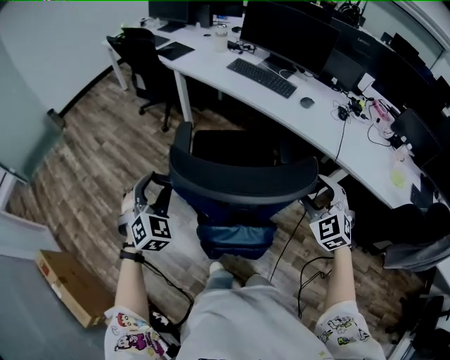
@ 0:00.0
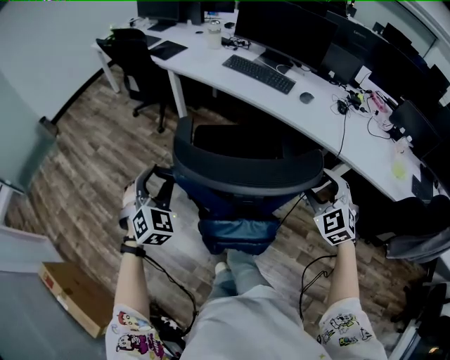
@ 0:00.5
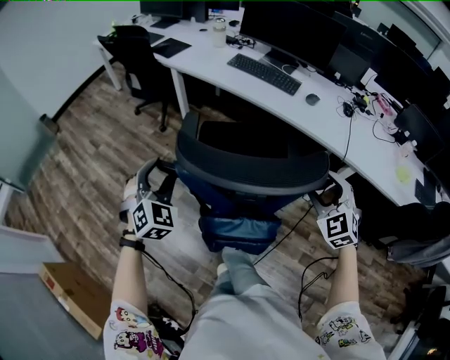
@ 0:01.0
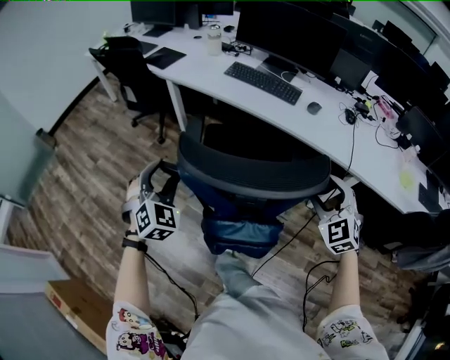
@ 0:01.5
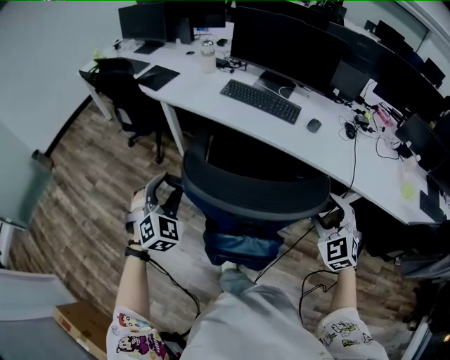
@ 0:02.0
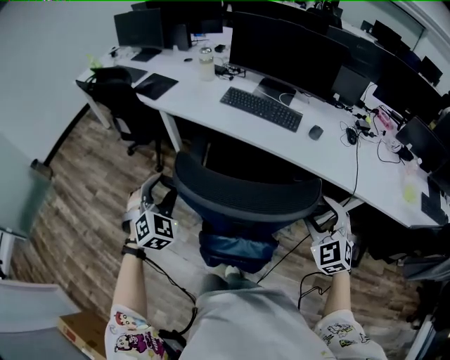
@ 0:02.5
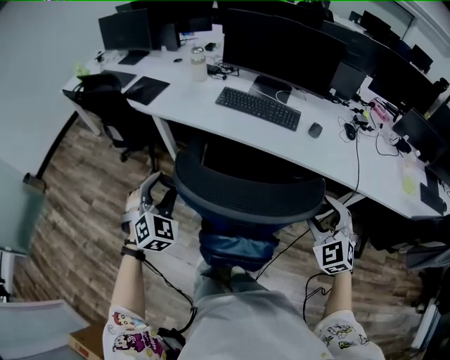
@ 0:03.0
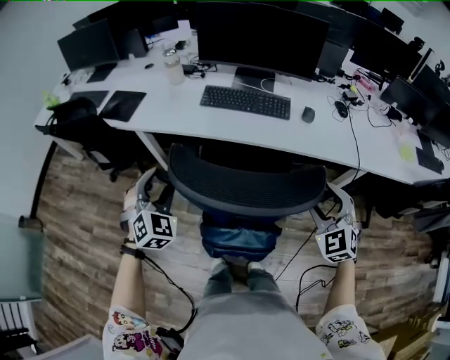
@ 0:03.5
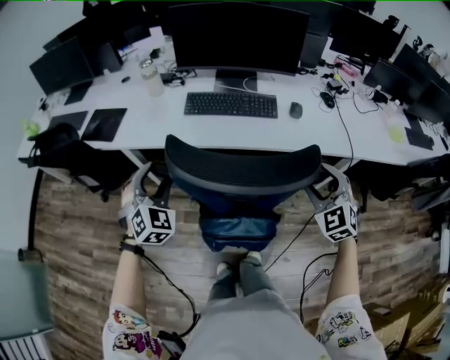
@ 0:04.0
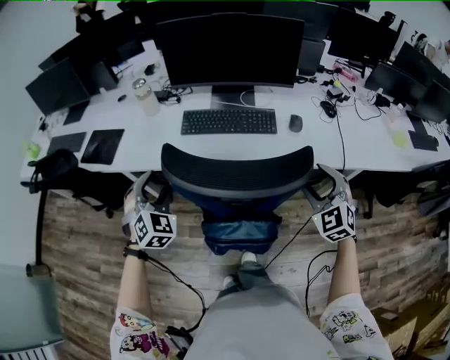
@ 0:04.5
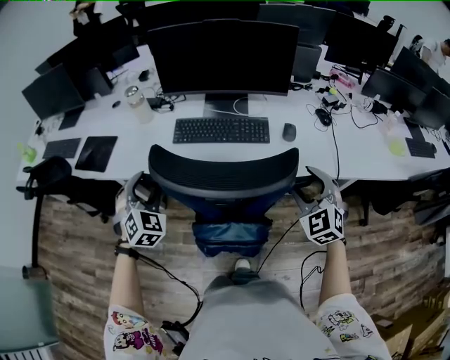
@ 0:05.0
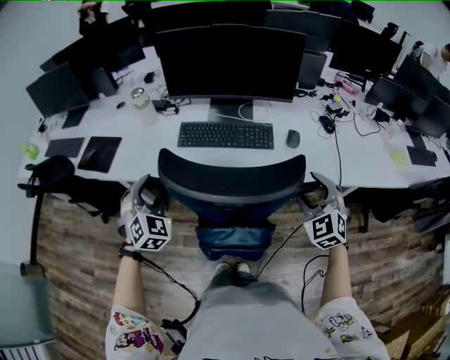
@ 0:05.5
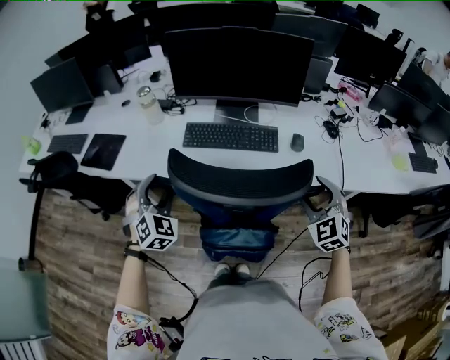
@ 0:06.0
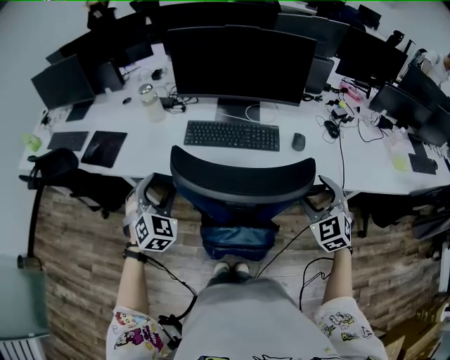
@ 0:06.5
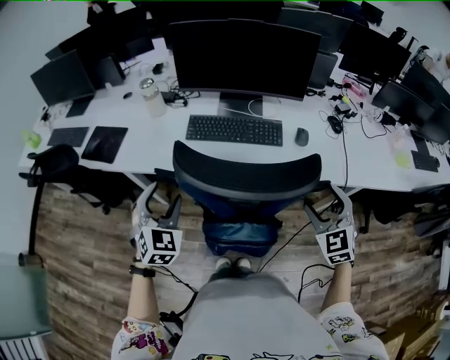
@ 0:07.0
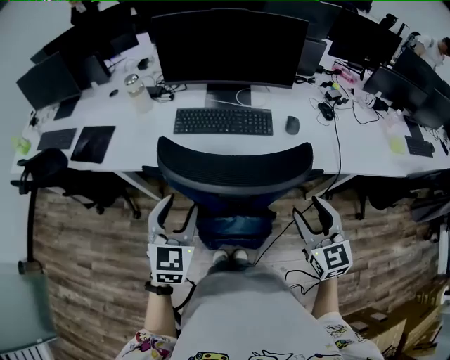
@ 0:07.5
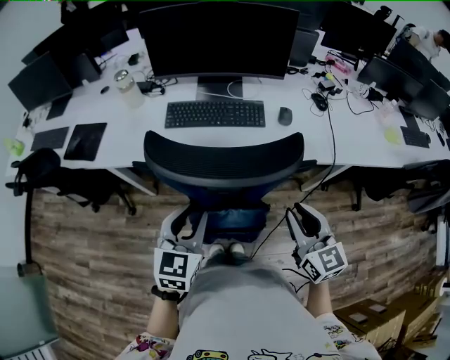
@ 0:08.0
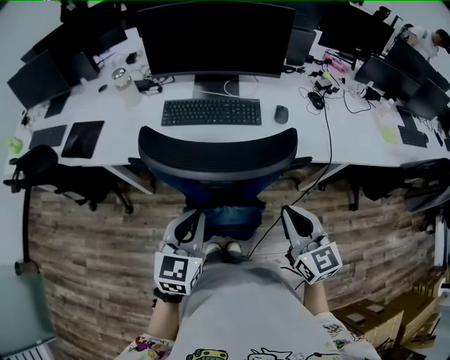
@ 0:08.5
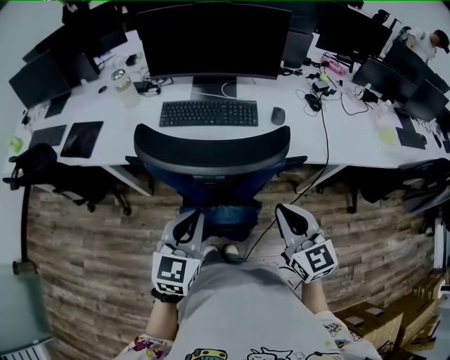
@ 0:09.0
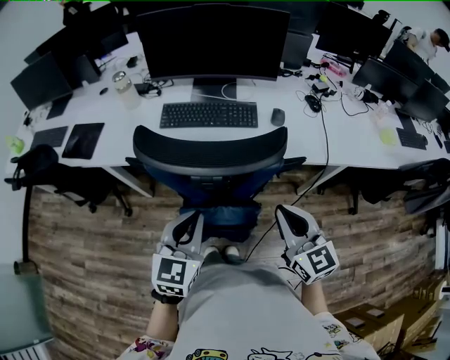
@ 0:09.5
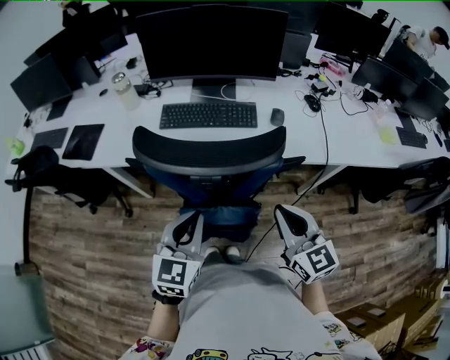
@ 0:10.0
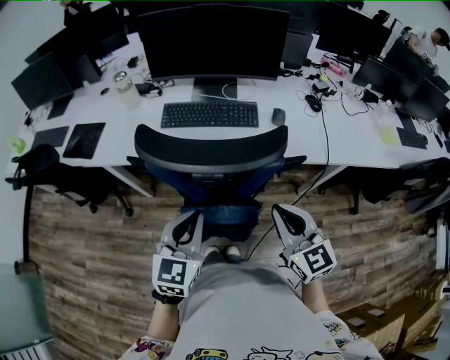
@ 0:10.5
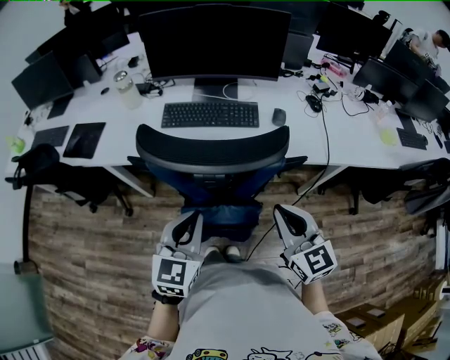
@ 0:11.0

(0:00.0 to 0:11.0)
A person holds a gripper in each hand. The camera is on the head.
0:00.0 - 0:02.0: The left gripper goes about 25 cm forward. The right gripper heads forward, covering approximately 15 cm.
0:02.0 - 0:03.5: The right gripper moves to the left and forward, about 10 cm. Meanwhile the left gripper goes about 20 cm forward.
0:03.5 - 0:05.5: Both grippers travel together forward, about 15 cm.
0:05.5 - 0:07.5: The left gripper moves backward and to the right, roughly 15 cm, and turns by roughly 30 degrees, while the right gripper heads backward, covering roughly 10 cm, and turns by some 40 degrees.
0:07.5 - 0:09.0: The right gripper closes; the left gripper goes some 10 cm to the right and backward, and closes.
0:09.0 - 0:11.0: Neither gripper changes place.

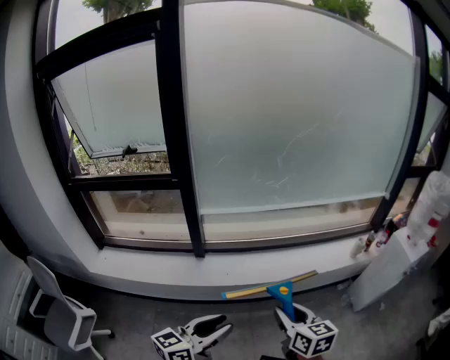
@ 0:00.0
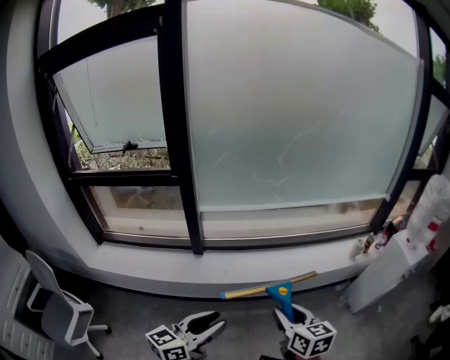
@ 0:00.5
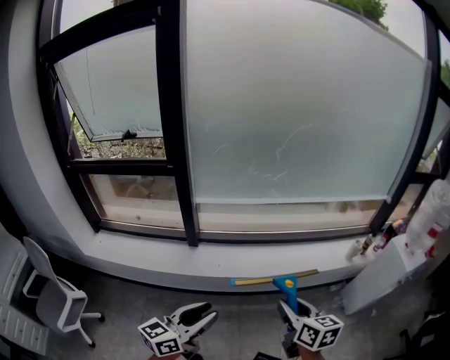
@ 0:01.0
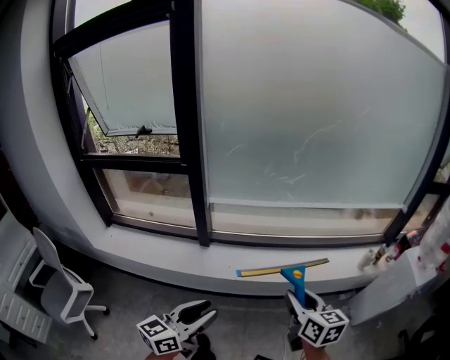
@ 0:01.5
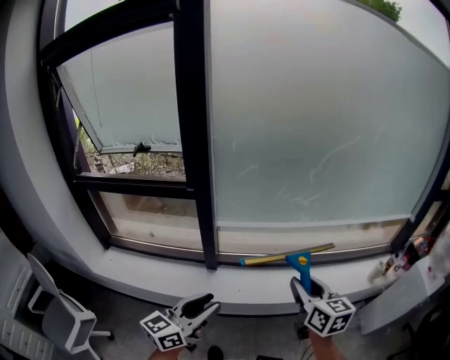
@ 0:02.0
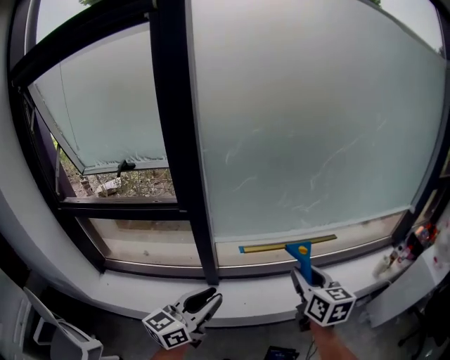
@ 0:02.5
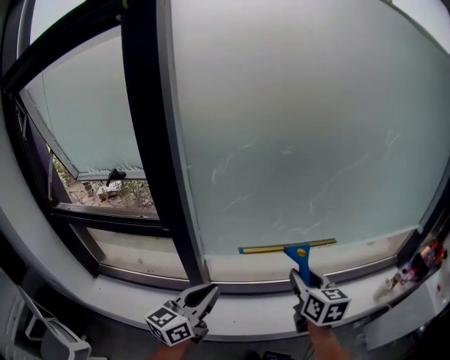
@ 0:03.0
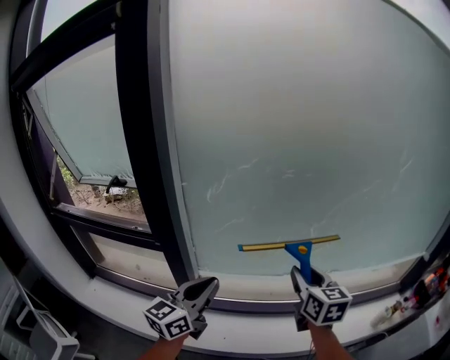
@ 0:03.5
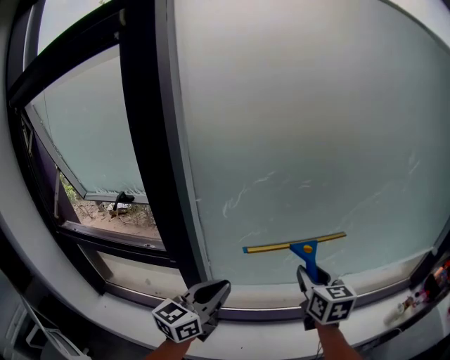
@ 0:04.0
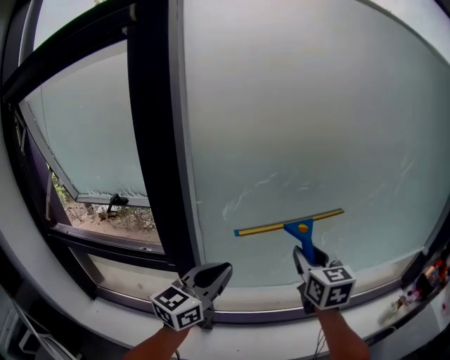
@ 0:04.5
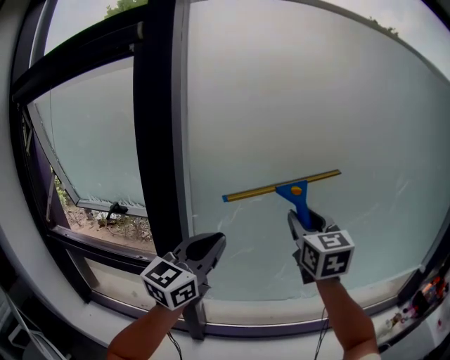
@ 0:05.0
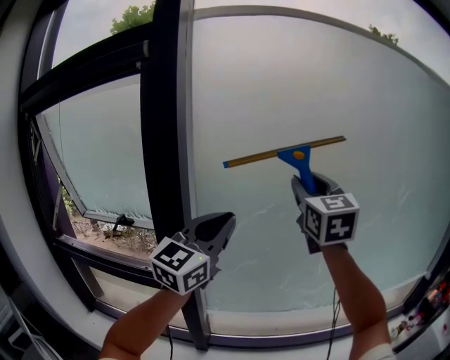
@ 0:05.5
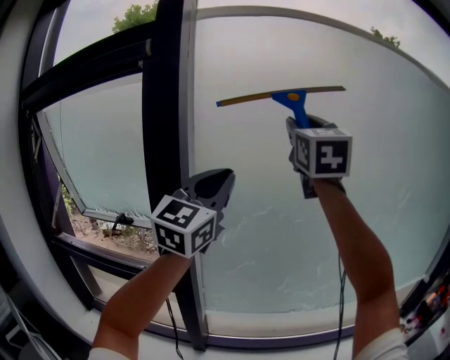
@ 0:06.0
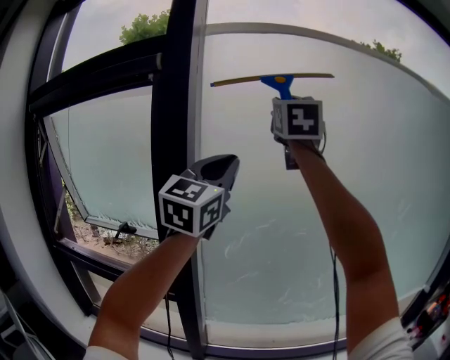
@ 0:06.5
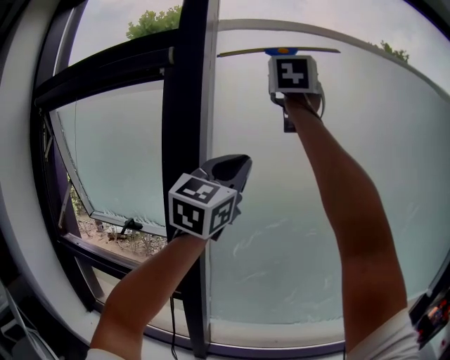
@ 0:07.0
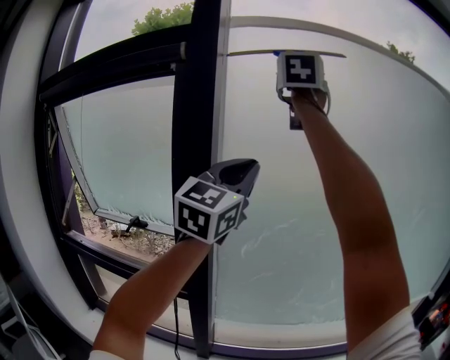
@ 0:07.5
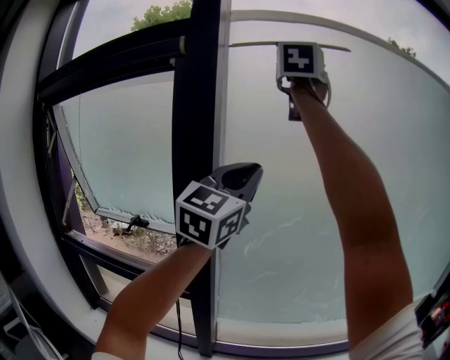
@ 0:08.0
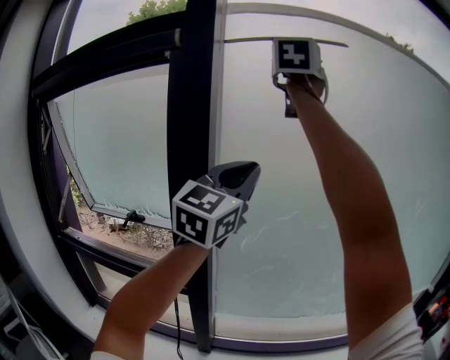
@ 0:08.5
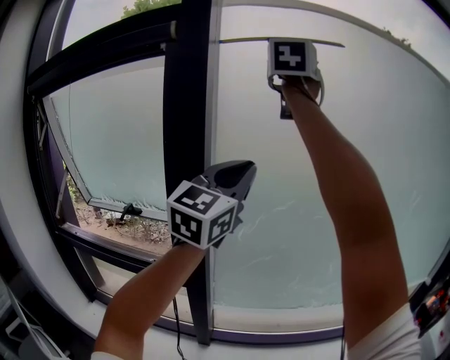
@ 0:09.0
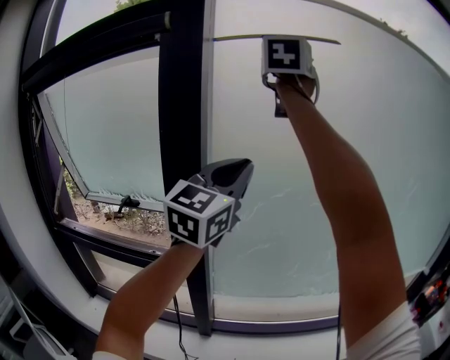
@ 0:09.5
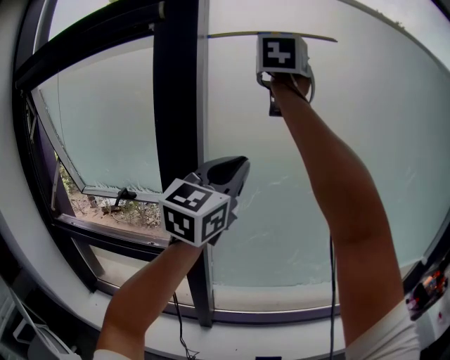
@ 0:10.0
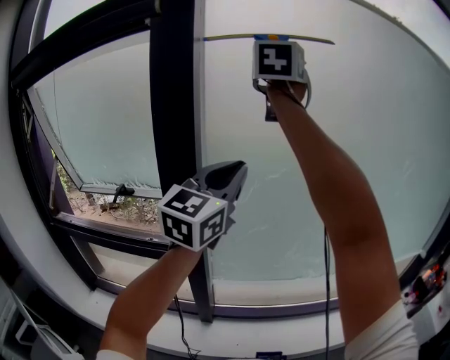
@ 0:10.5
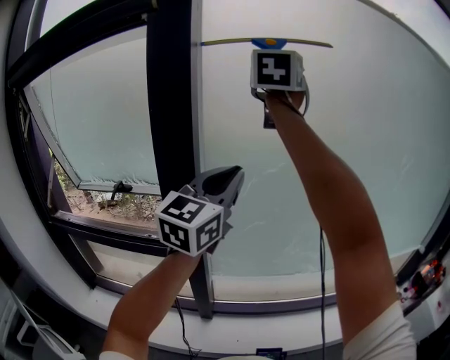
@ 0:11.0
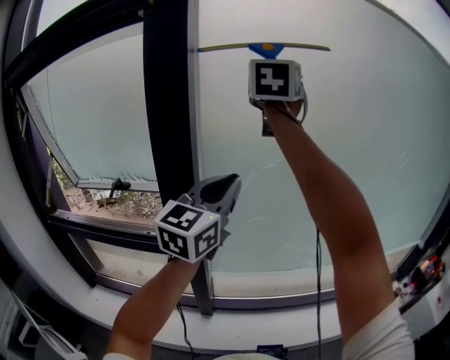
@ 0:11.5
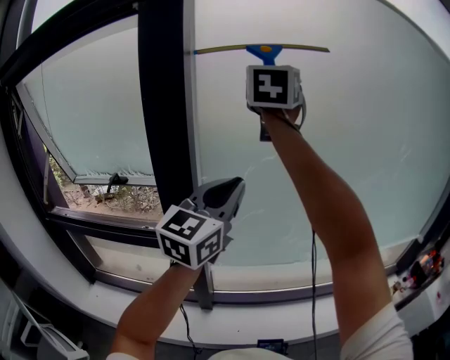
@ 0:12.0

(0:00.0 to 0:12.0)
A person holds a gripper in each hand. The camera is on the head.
0:00.0 - 0:02.0: The left gripper shifts about 20 cm forward and to the left. The right gripper moves forward, approximately 20 cm.
0:02.0 - 0:04.0: Both grippers travel together forward, approximately 35 cm. The left gripper closes its fingers.
0:04.0 - 0:06.0: Both grippers move upward, roughly 40 cm. The right gripper tips its fingers upward by about 30 degrees; the left gripper rotates about 40 degrees.
0:06.0 - 0:08.0: The right gripper heads upward and to the left, covering roughly 20 cm.
0:08.0 - 0:10.0: The two grippers go approximately 10 cm downward.
0:10.0 - 0:12.0: The grippers both shift downward by some 10 cm.

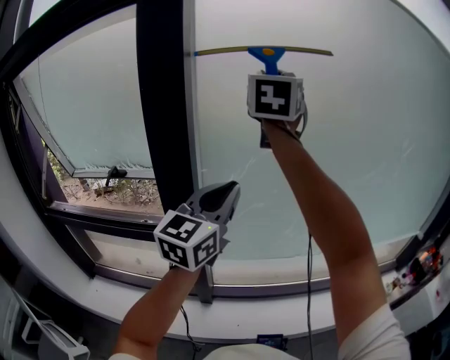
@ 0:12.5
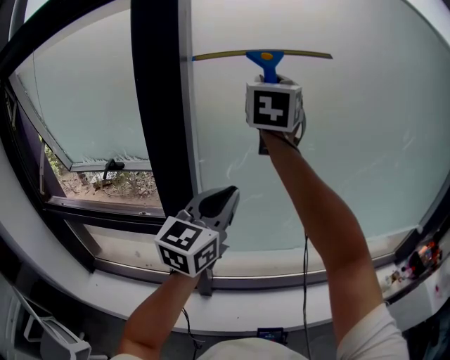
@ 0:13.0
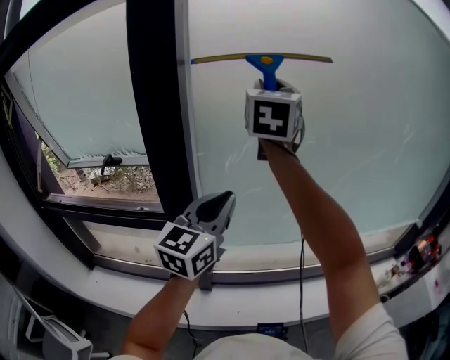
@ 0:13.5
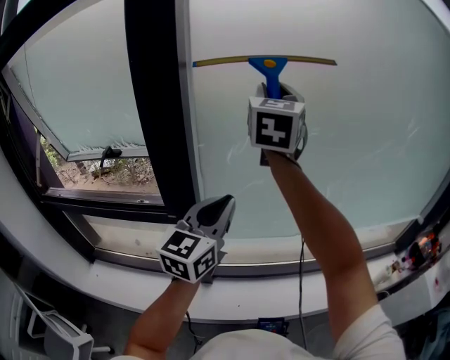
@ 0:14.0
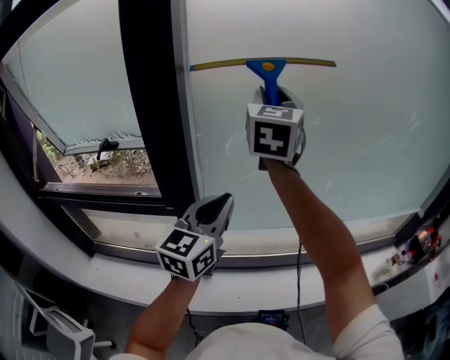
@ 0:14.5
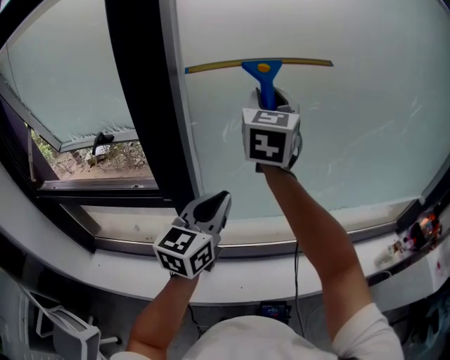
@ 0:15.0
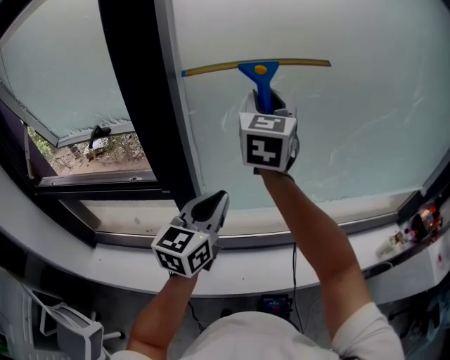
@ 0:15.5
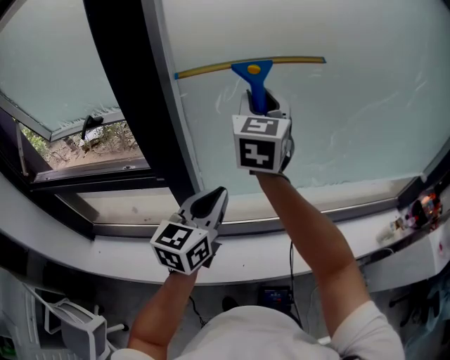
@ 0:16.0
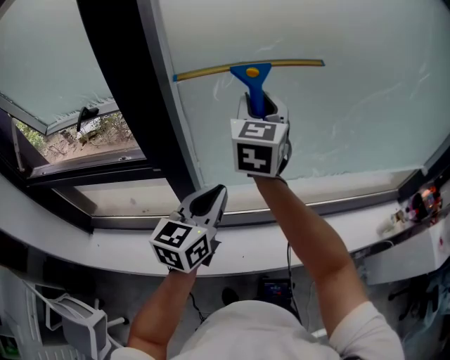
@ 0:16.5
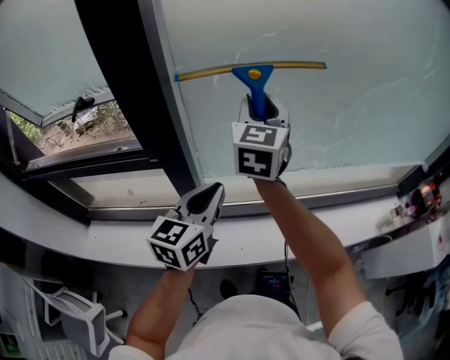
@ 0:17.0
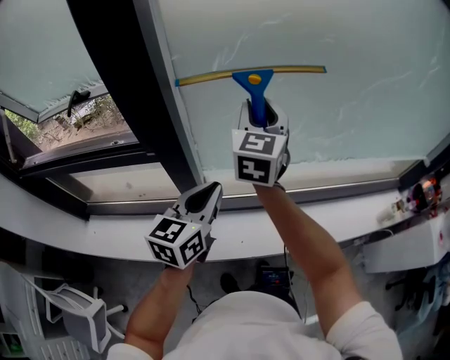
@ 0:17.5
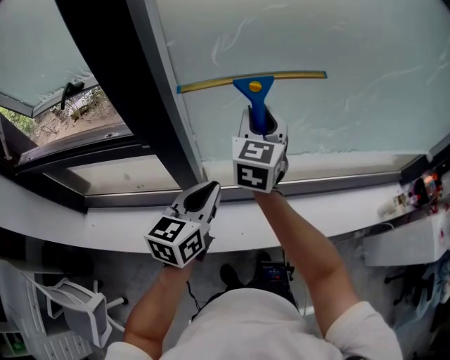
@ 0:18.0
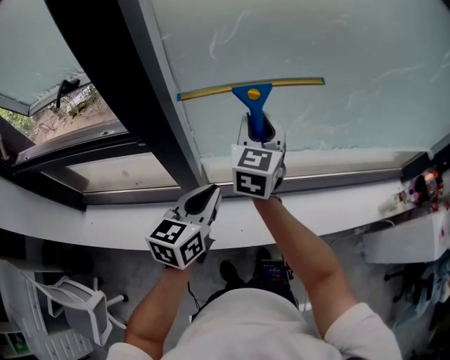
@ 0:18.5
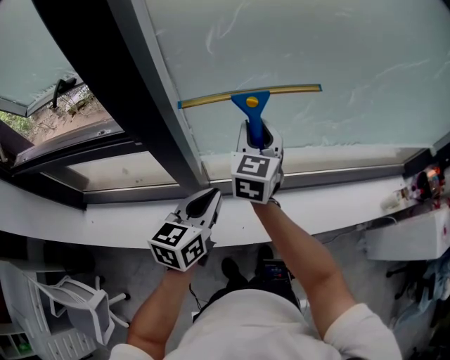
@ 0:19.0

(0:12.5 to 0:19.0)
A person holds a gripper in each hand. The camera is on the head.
0:12.5 - 0:14.5: Both grippers move downward, roughly 15 cm.
0:14.5 - 0:17.0: The left gripper is displaced downward by about 15 cm; the right gripper goes roughly 20 cm downward.
0:17.0 - 0:19.0: The right gripper travels downward by about 20 cm. The left gripper is displaced downward by about 10 cm.
